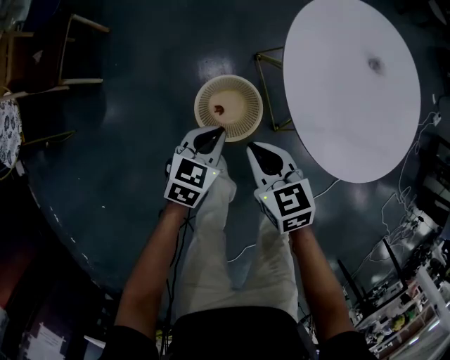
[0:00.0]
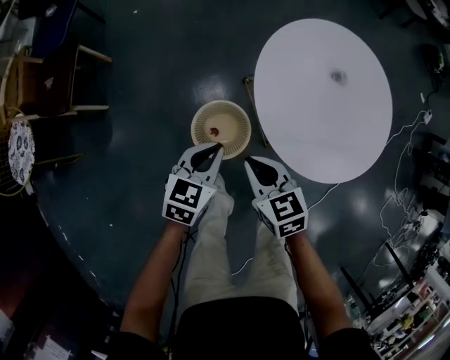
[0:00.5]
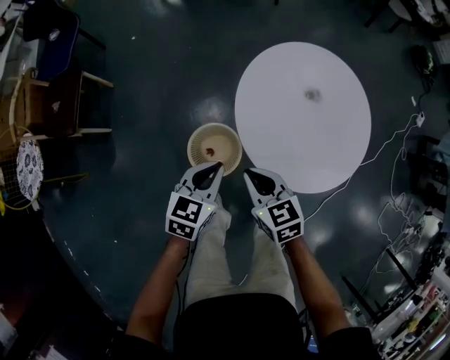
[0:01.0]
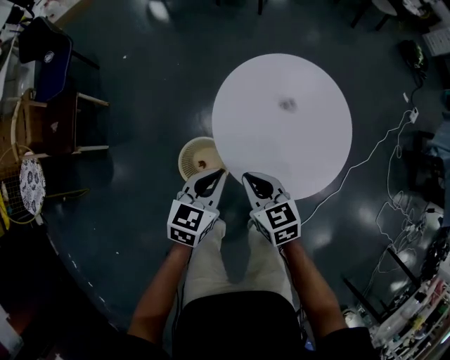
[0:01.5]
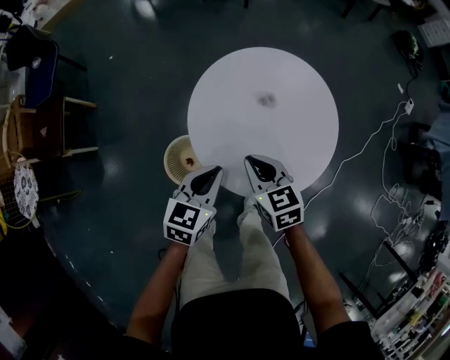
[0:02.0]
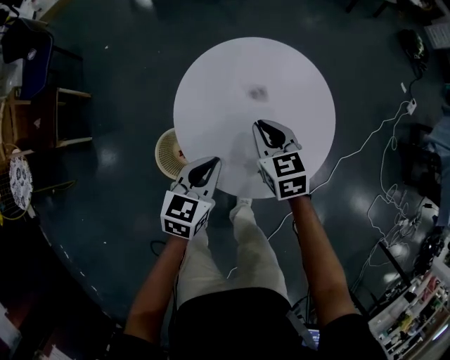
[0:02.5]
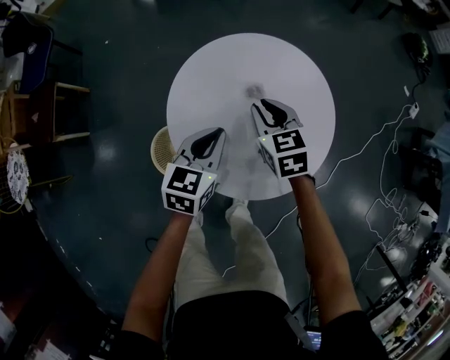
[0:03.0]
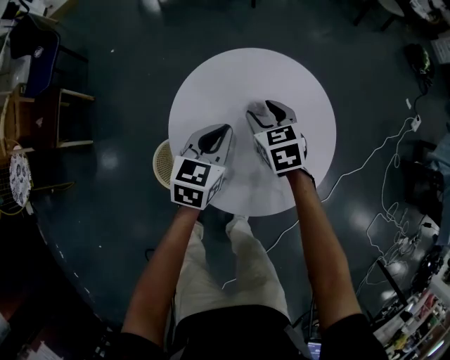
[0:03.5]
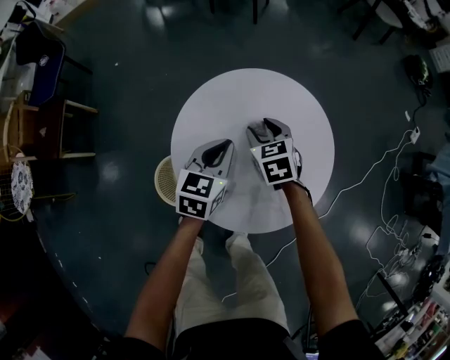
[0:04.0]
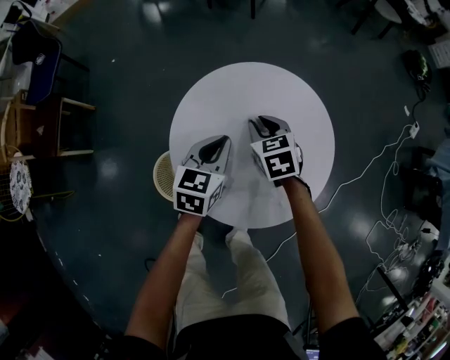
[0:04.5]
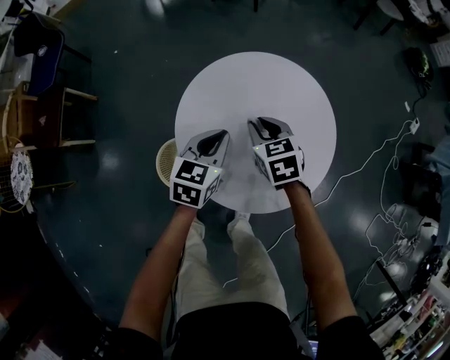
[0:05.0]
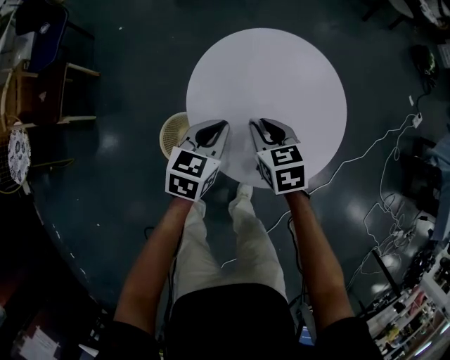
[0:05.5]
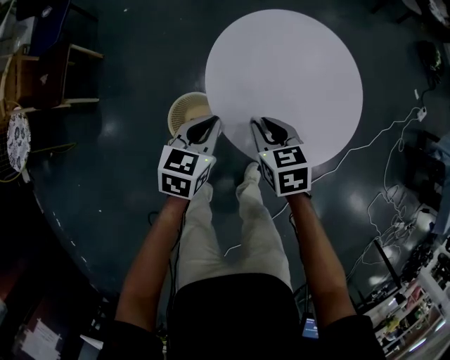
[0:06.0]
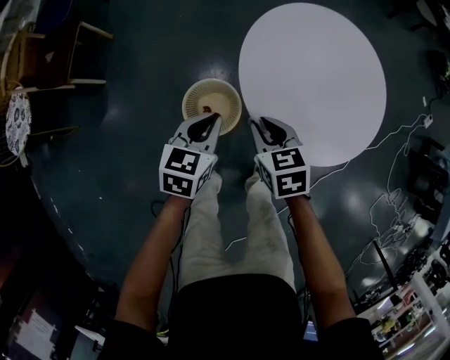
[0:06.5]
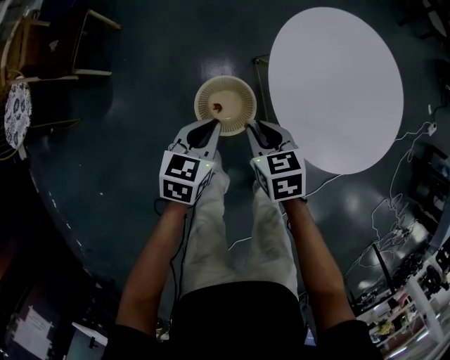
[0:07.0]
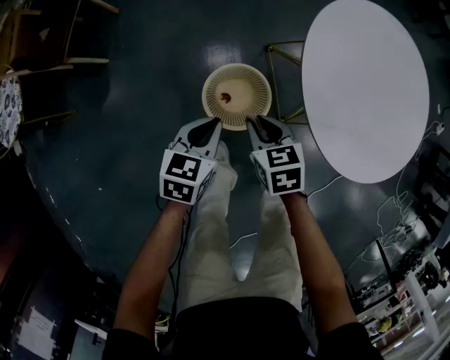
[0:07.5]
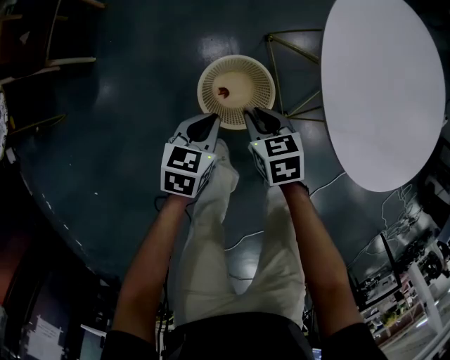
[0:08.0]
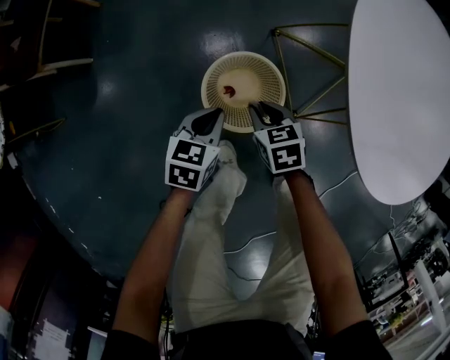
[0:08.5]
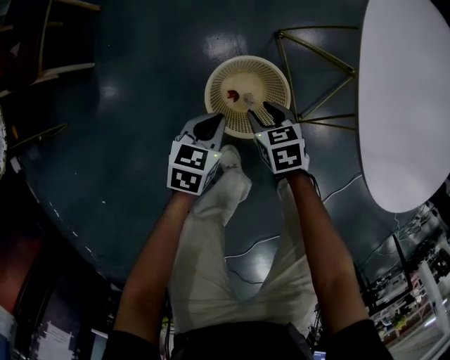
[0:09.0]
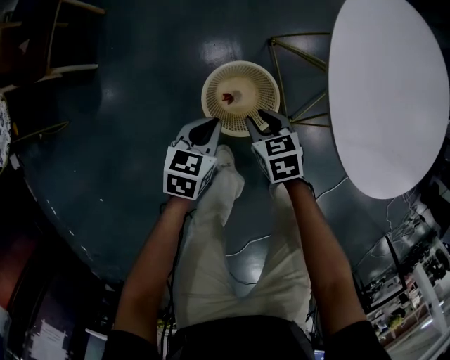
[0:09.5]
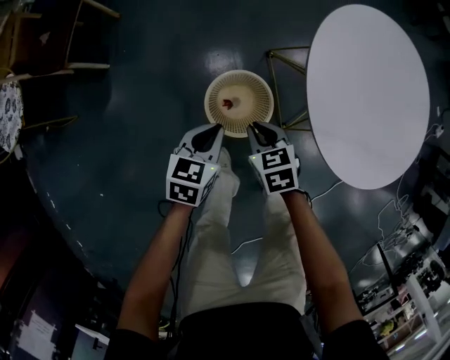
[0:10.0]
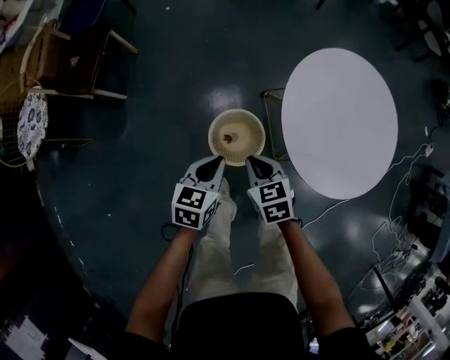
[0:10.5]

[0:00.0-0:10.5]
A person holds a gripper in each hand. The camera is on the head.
0:00.0 to 0:02.0: The left gripper is displaced upward and to the right by approximately 30 cm; the right gripper moves to the right, upward and forward, approximately 30 cm.
0:02.0 to 0:04.0: The right gripper heads forward, to the right and downward, covering roughly 20 cm, and opens up; the left gripper goes approximately 15 cm forward and to the right.
0:04.0 to 0:06.5: The left gripper moves to the left and backward, roughly 30 cm. The right gripper travels backward and to the left by approximately 35 cm, and closes up.
0:06.5 to 0:08.5: Both grippers travel together downward and to the left, approximately 35 cm.
0:08.5 to 0:10.5: Both grippers travel together upward, some 30 cm.

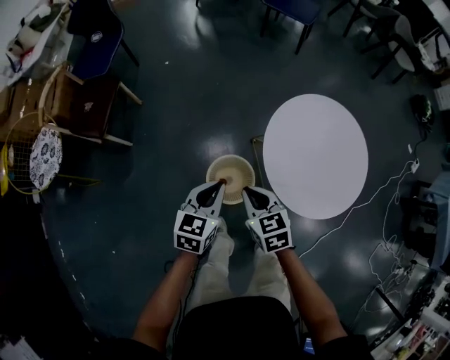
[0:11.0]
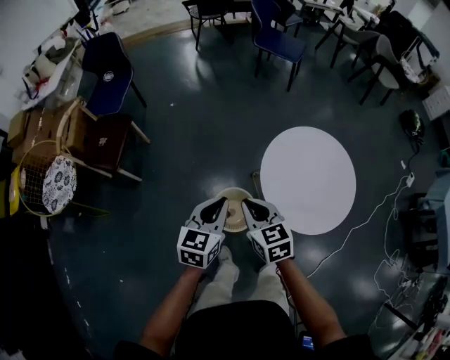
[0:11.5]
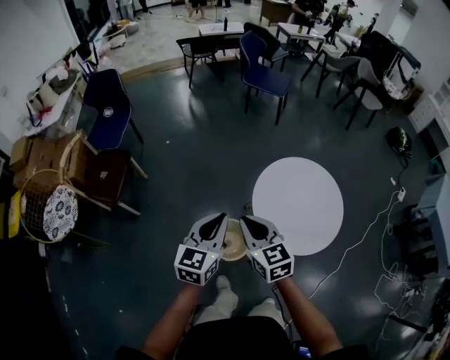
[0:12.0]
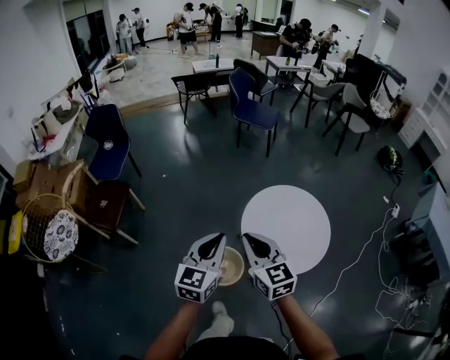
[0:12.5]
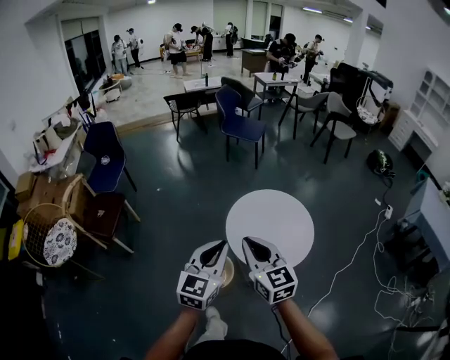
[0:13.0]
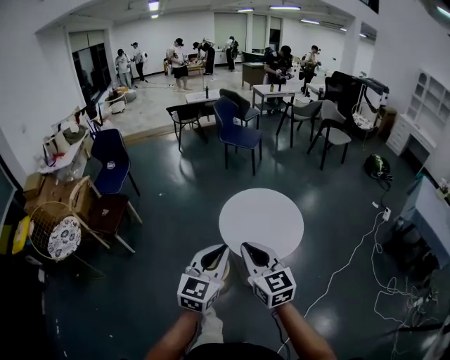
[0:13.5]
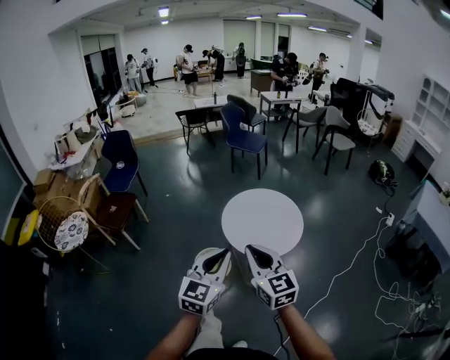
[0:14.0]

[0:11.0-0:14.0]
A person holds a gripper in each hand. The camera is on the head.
0:11.0 to 0:12.5: Both grippers travel together upward, some 30 cm. The left gripper swivels some 20 degrees. Meanwhile the right gripper swivels about 30 degrees.
0:12.5 to 0:14.0: Both grippers move backward and to the right, approximately 40 cm.

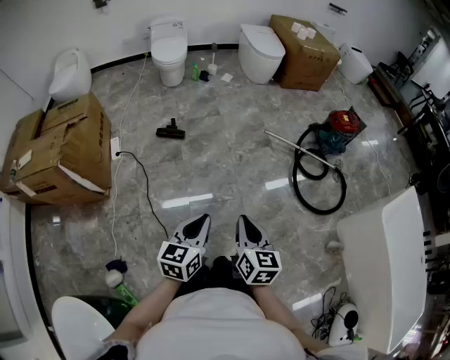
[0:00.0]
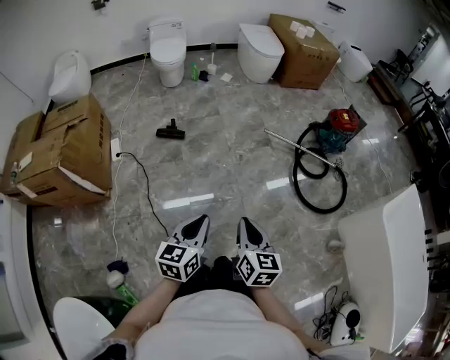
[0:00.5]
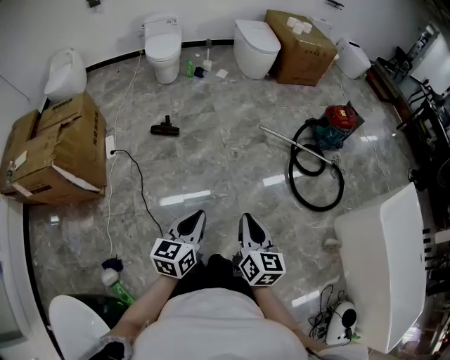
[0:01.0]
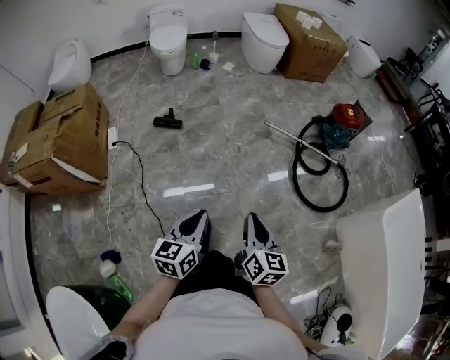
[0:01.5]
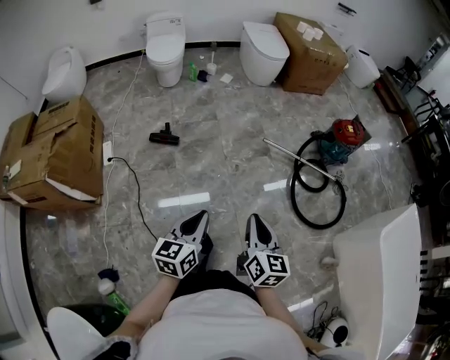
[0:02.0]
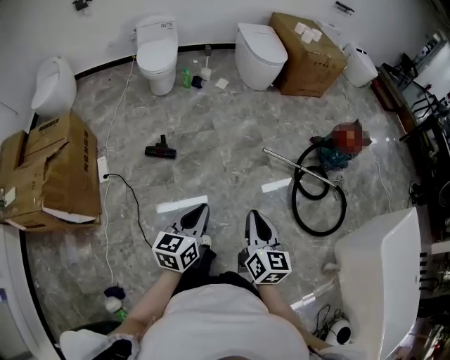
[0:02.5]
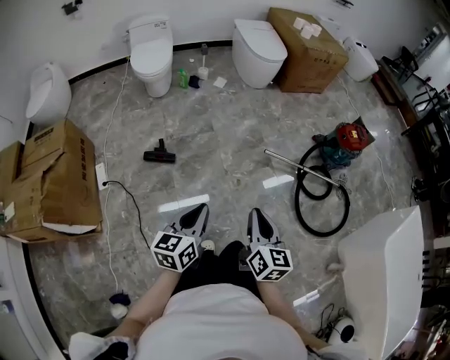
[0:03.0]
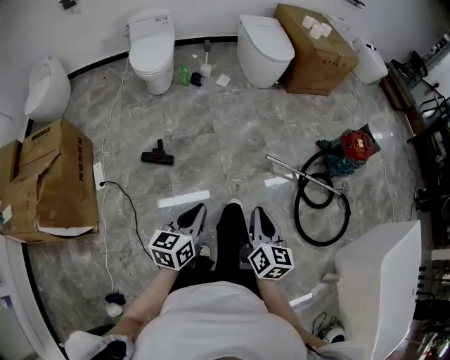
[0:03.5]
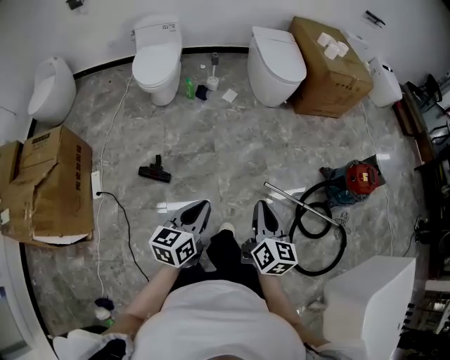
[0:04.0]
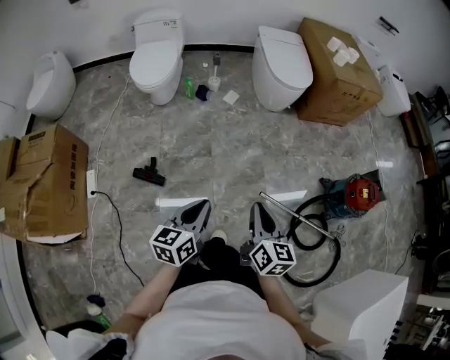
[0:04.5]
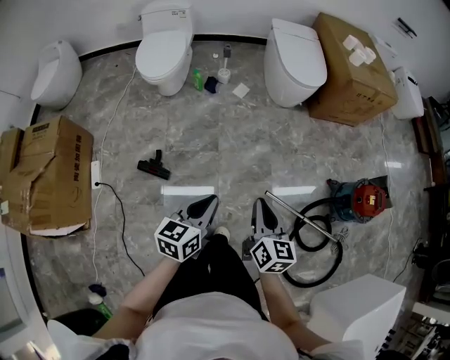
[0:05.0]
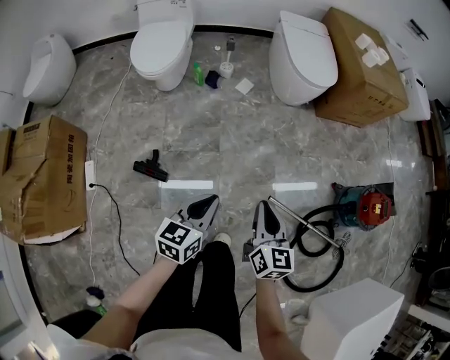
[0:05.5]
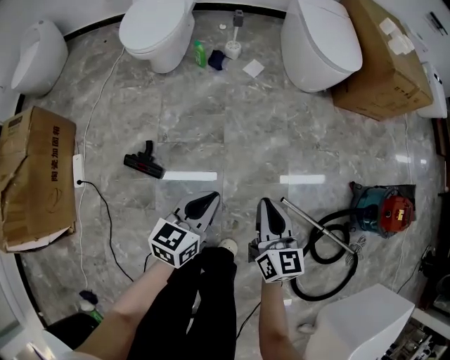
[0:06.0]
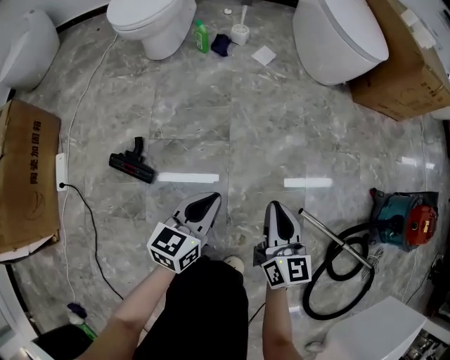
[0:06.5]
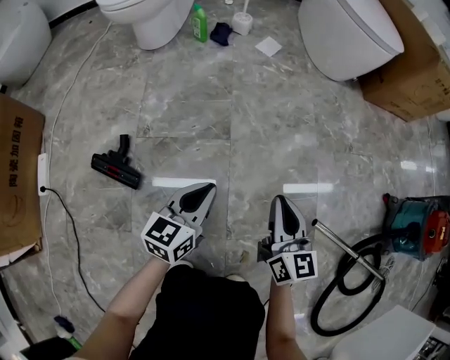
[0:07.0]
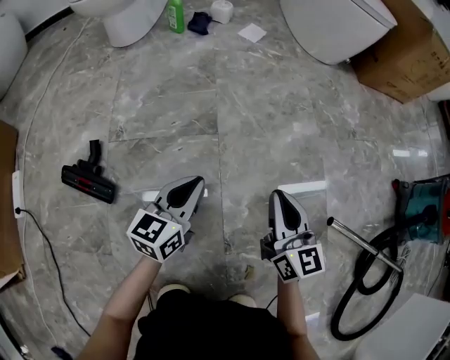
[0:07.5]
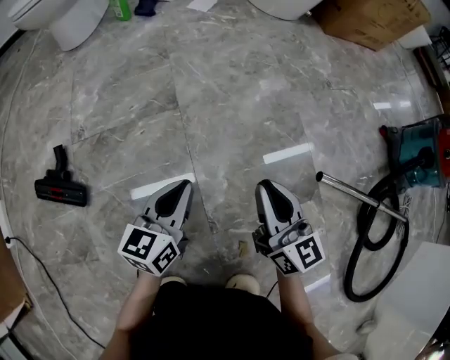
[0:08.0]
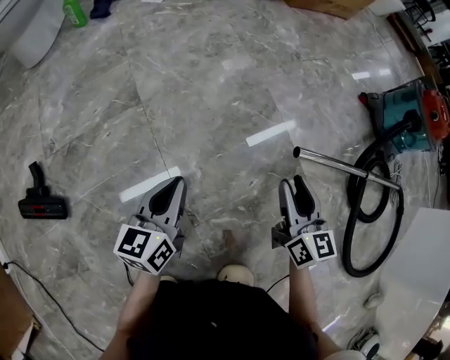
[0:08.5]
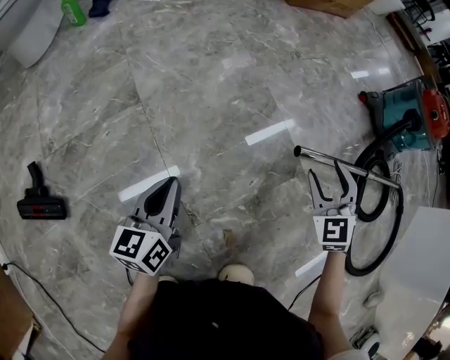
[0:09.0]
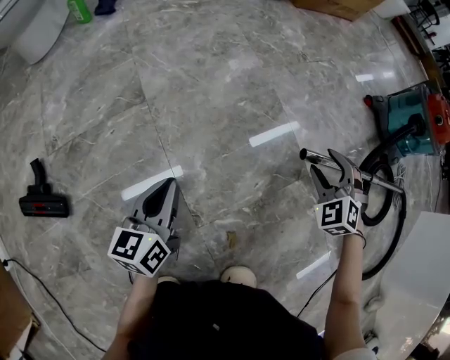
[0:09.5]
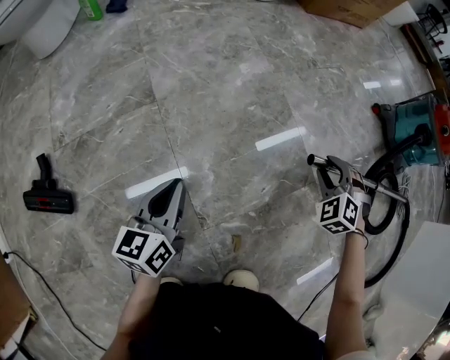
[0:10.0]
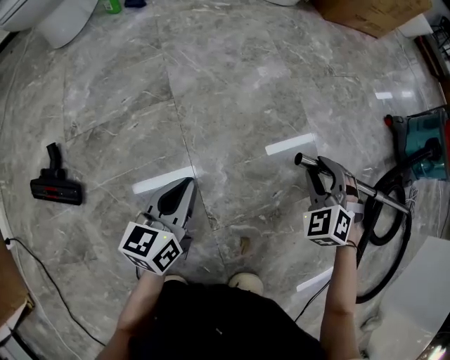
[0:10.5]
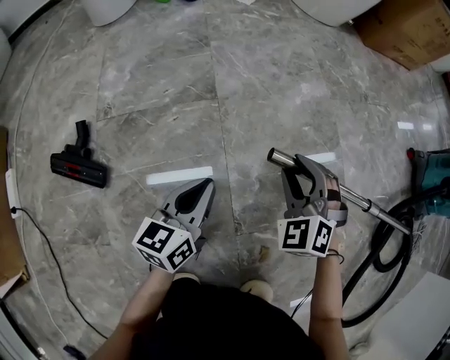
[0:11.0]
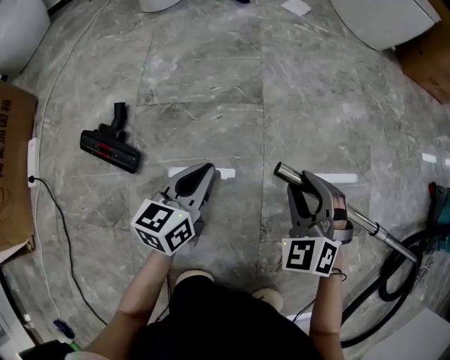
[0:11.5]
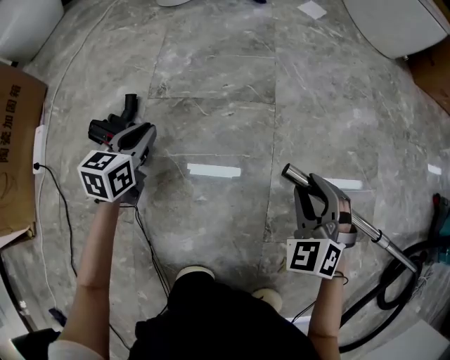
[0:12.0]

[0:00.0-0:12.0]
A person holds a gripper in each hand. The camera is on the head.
0:00.0 to 0:02.0: The grippers both shift forward by roughly 15 cm.
0:02.0 to 0:04.0: The two grippers travel together, forward, roughly 40 cm.
0:04.0 to 0:06.0: Both grippers move forward and downward, approximately 30 cm.
0:06.0 to 0:08.0: The two grippers go some 40 cm downward.
0:08.0 to 0:10.0: The right gripper travels to the right and downward by approximately 25 cm, tips its fingers downward by some 40 degrees, and opens.
0:10.0 to 0:12.0: The left gripper shifts by some 35 cm, and changes its angle by roughly 30 degrees. Meanwhile the right gripper shifts by some 35 cm, and changes its angle by about 30 degrees.

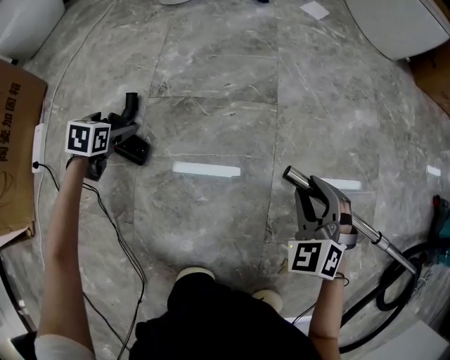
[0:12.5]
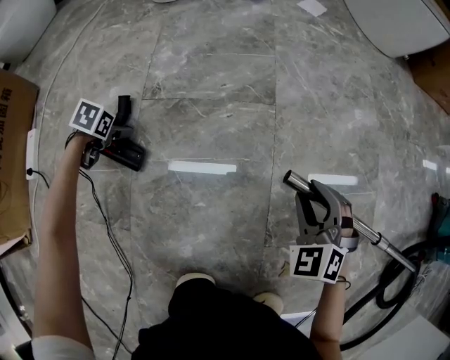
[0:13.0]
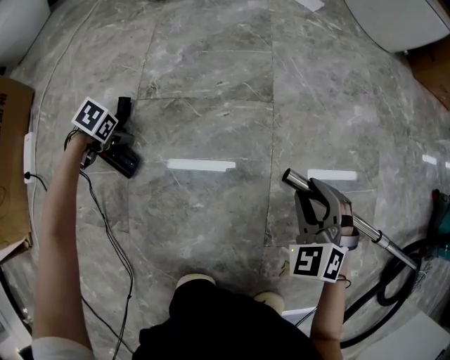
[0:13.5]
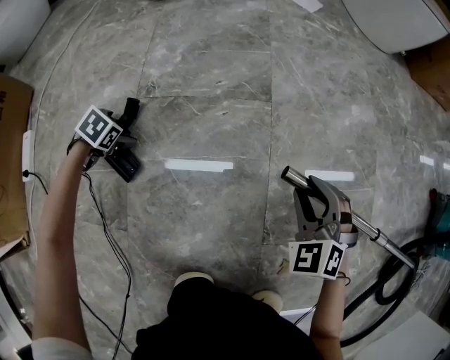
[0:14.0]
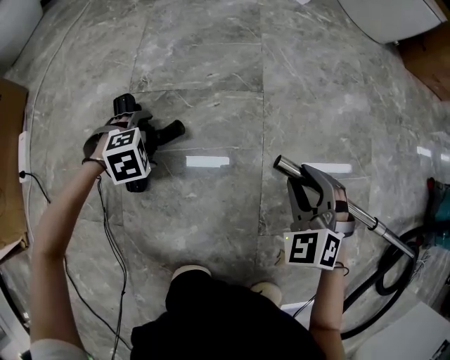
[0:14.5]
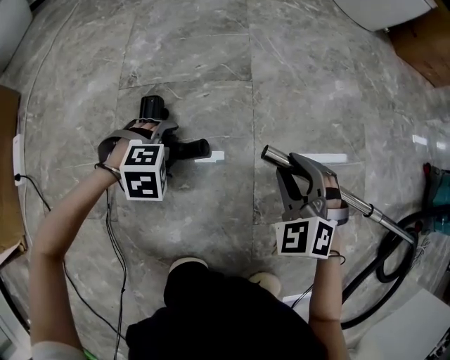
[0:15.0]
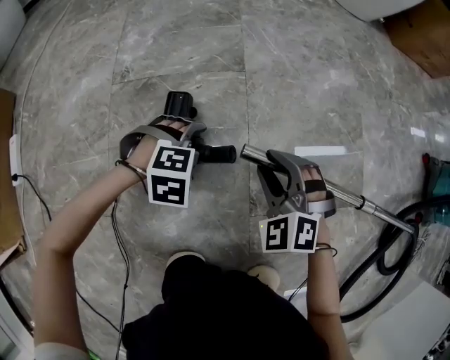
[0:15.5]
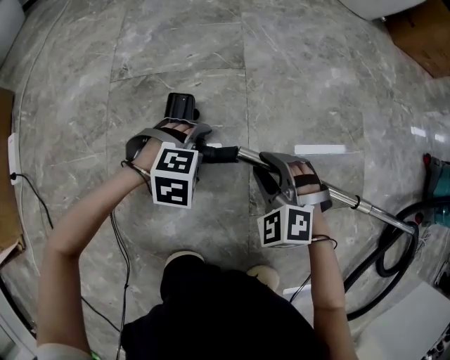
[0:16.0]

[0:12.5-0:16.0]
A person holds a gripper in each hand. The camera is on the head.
0:12.5 to 0:14.5: The left gripper moves approximately 20 cm, and rotates around the line of its fingers by some 60 degrees, clockwise from behind.
0:14.5 to 0:16.0: The left gripper shifts by some 20 cm, and changes its angle by roughly 30 degrees. Meanwhile the right gripper heads downward, covering approximately 5 cm.
